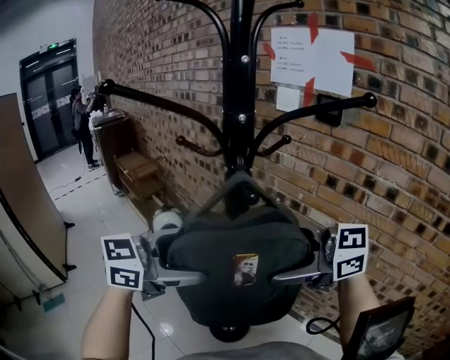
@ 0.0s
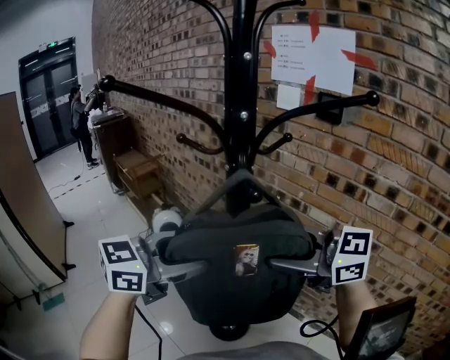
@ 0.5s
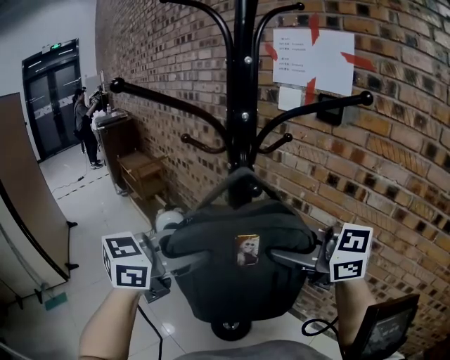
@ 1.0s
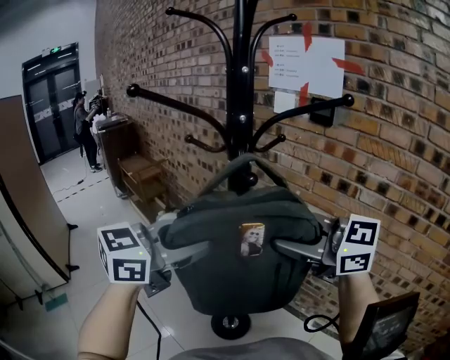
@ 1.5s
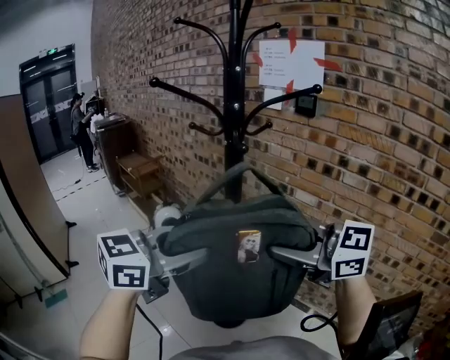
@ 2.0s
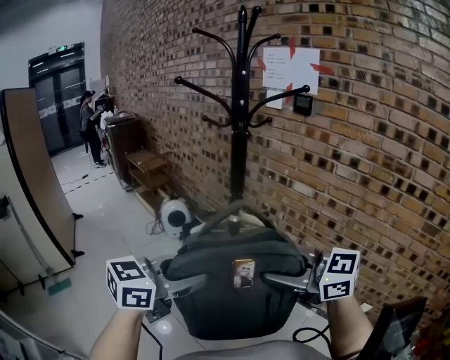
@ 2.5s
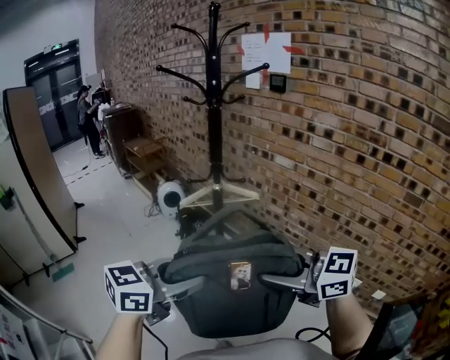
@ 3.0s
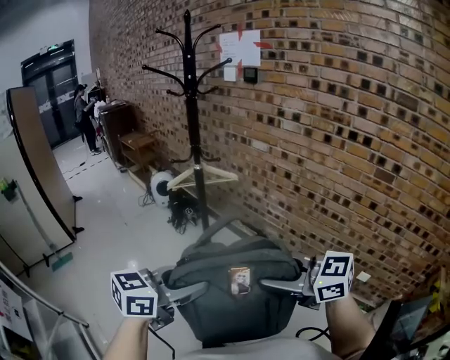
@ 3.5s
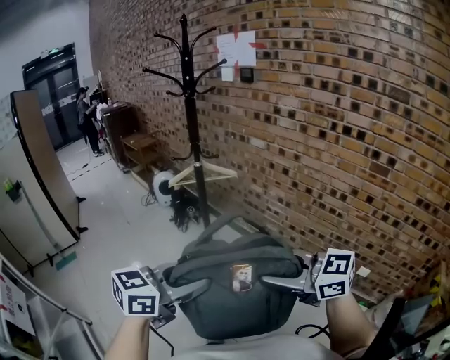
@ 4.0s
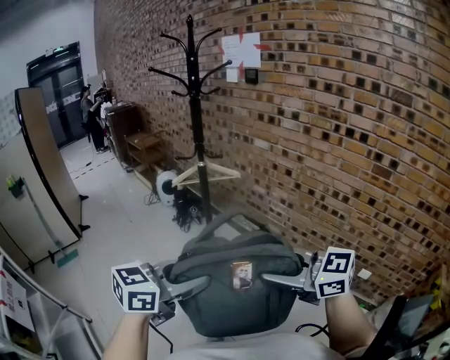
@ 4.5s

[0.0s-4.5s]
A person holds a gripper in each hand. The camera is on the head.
0.0s to 2.0s: The right gripper shifts by roughly 15 cm, and closes its fingers. The left gripper shifts by roughly 15 cm, and closes up.
2.0s to 4.5s: The two grippers travel together, about 50 cm.

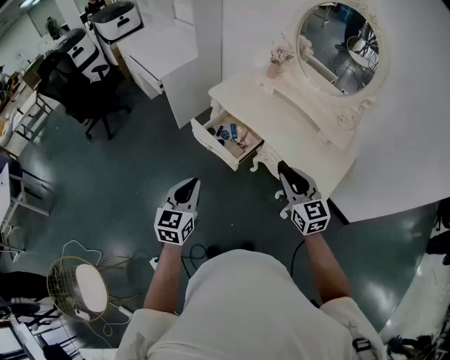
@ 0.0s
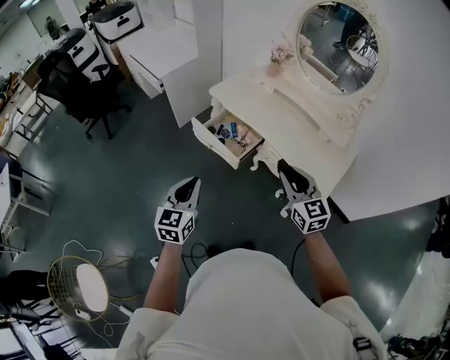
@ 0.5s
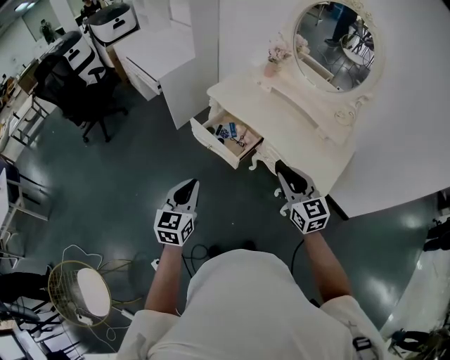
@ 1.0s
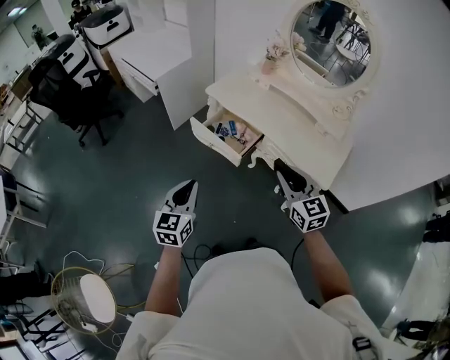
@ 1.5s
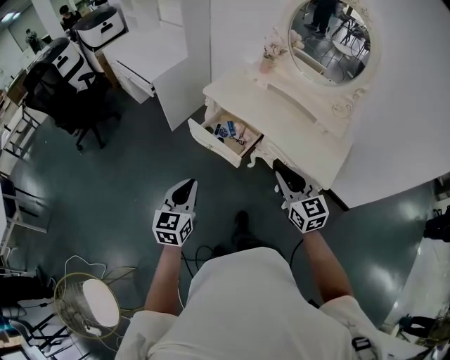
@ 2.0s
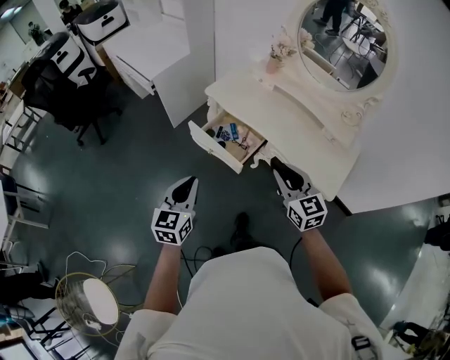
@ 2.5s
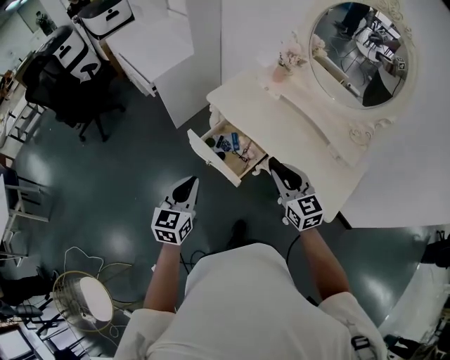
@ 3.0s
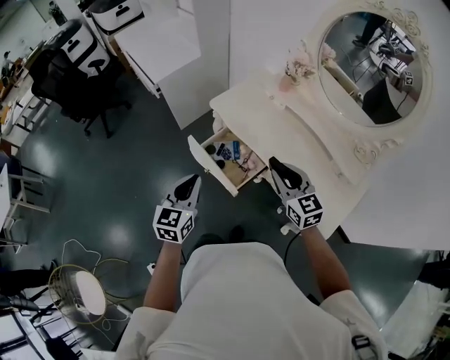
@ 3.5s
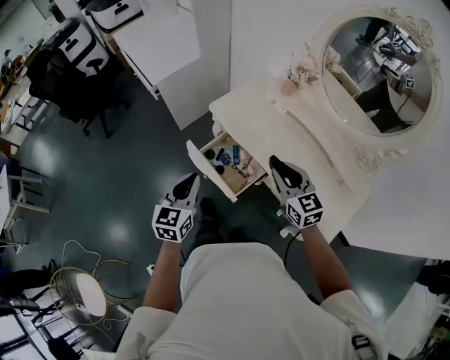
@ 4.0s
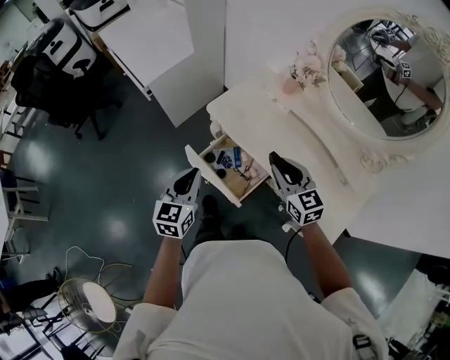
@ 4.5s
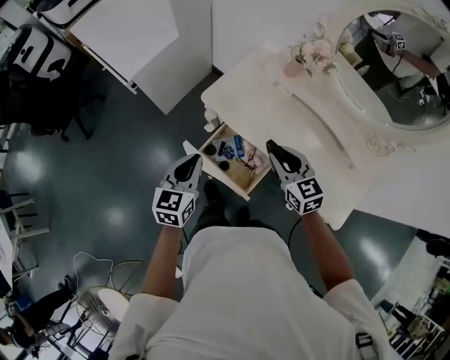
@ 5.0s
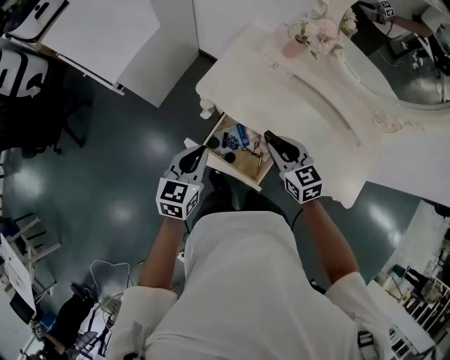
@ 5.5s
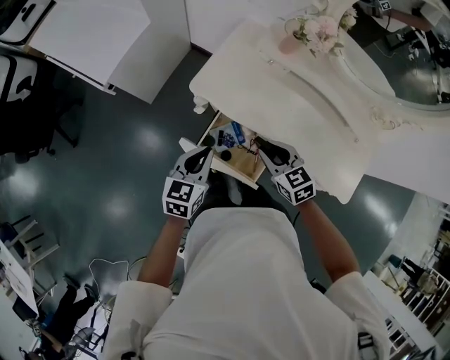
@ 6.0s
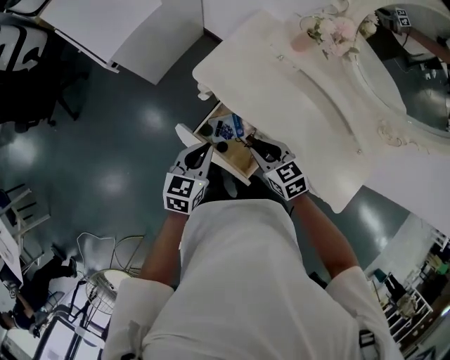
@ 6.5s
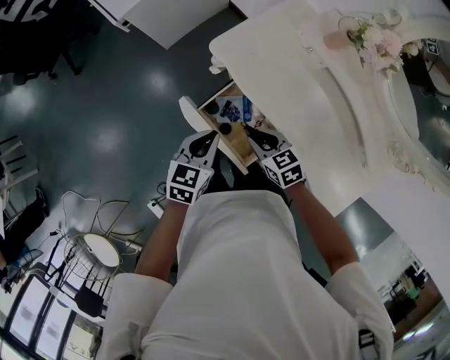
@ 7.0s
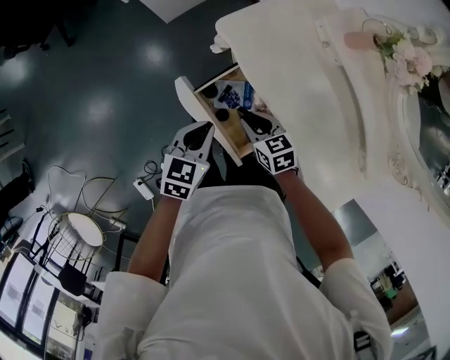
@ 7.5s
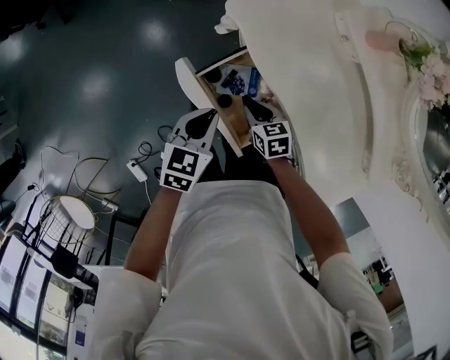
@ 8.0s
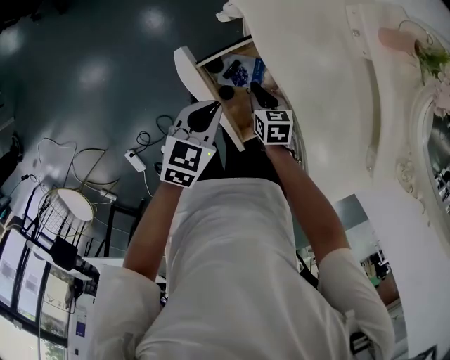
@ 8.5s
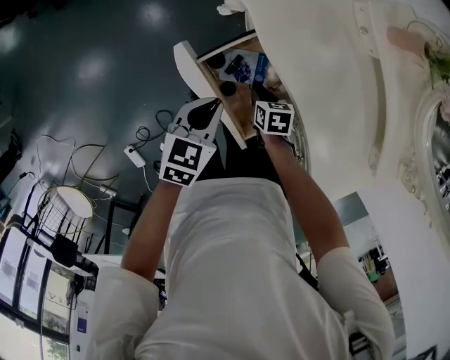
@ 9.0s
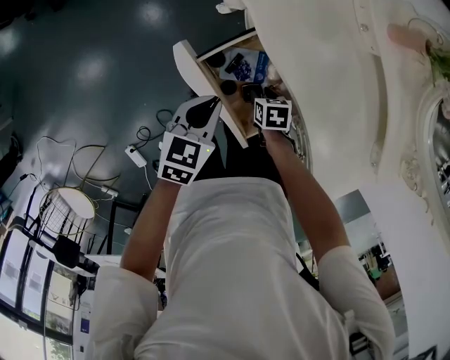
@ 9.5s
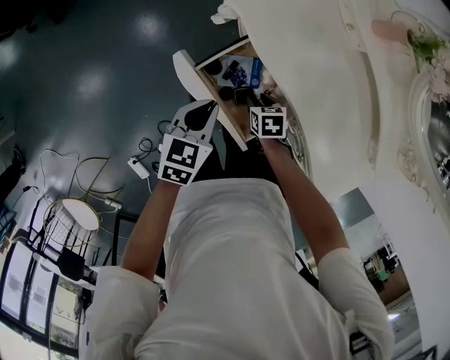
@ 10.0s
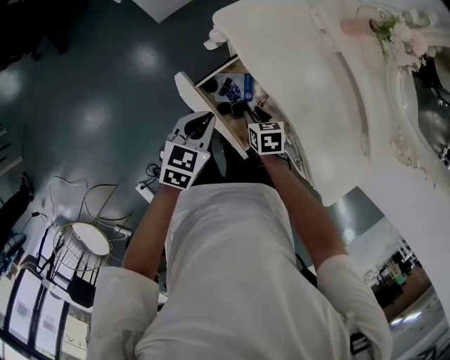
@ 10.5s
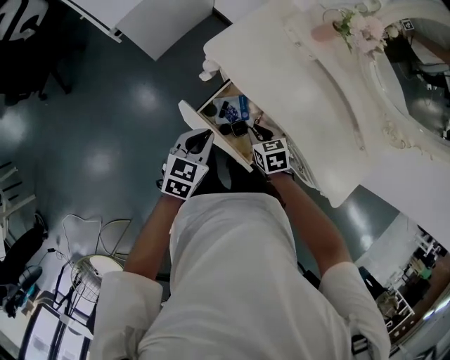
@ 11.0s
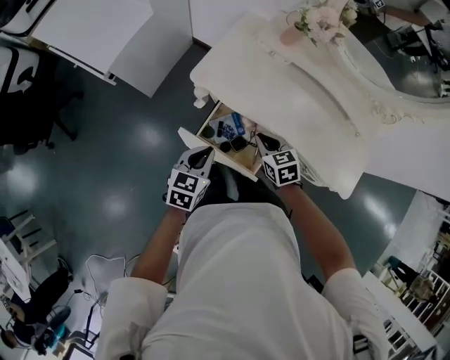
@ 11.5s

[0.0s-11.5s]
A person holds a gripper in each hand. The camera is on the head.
0.0s to 2.0s: Both grippers travel together to the left, approximately 5 cm.
2.0s to 4.0s: Both grippers travel together forward, approximately 25 cm.
4.0s to 6.0s: The right gripper is displaced downward, to the left and forward by roughly 20 cm, and turns by approximately 20 degrees. Meanwhile the left gripper is displaced forward and downward by roughly 20 cm, and turns by approximately 30 degrees.
6.0s to 7.5s: The left gripper heads downward, covering about 10 cm, and turns by some 20 degrees; the right gripper moves downward, some 15 cm, and rotates approximately 20 degrees.
7.5s to 9.5s: The right gripper shifts roughly 15 cm downward, and turns by some 30 degrees.
9.5s to 11.5s: The left gripper moves upward, approximately 10 cm, and swivels some 20 degrees. Meanwhile the right gripper is displaced upward by about 25 cm, changes its angle by about 30 degrees, and closes.

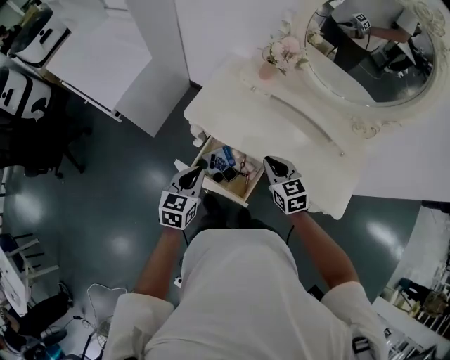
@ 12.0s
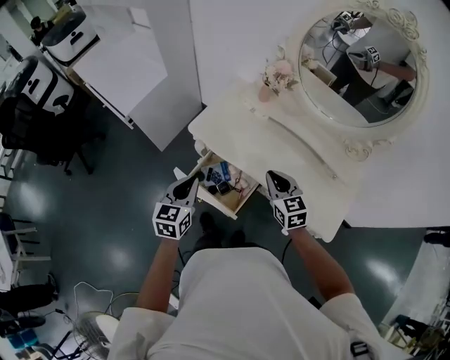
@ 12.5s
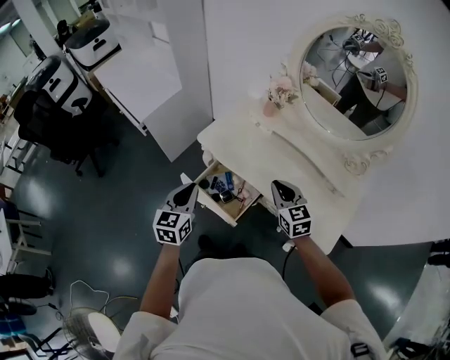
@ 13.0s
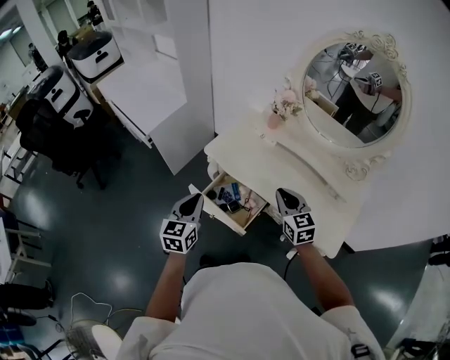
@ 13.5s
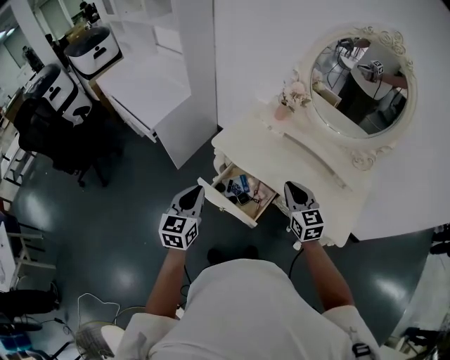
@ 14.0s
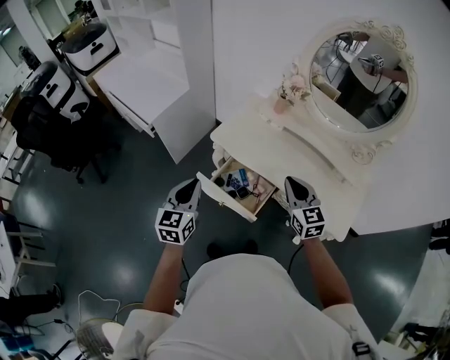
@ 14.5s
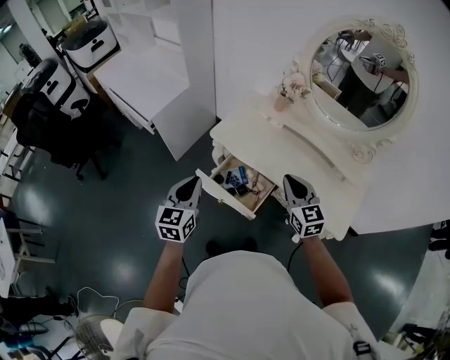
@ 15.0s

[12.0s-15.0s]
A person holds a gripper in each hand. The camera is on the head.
12.0s to 13.5s: Both grippers move upward and backward, about 10 cm. The left gripper changes its angle by roughly 20 degrees.
13.5s to 15.0s: The left gripper ends up approximately 5 cm from where it was.

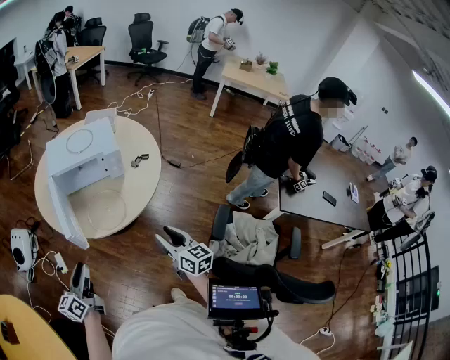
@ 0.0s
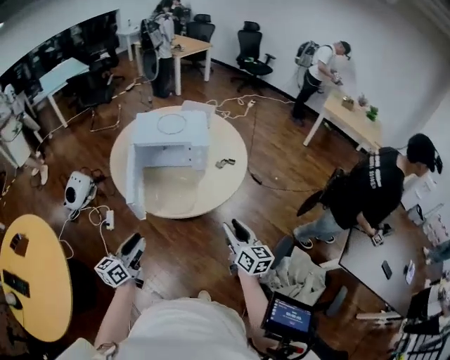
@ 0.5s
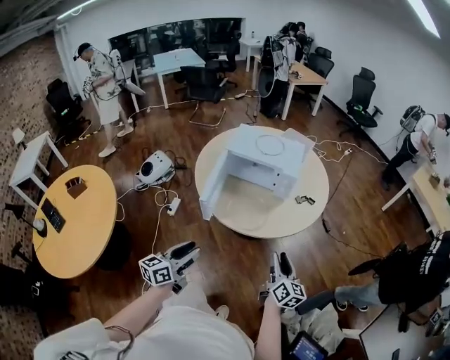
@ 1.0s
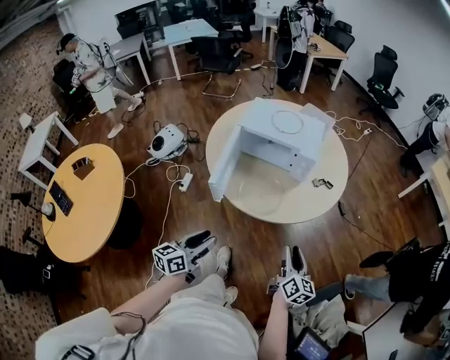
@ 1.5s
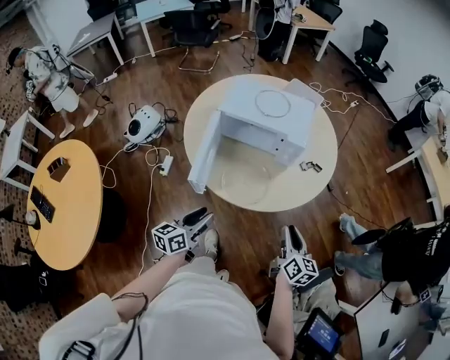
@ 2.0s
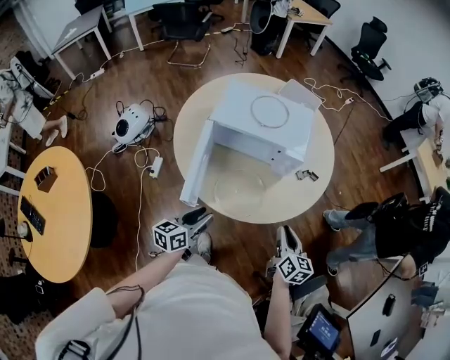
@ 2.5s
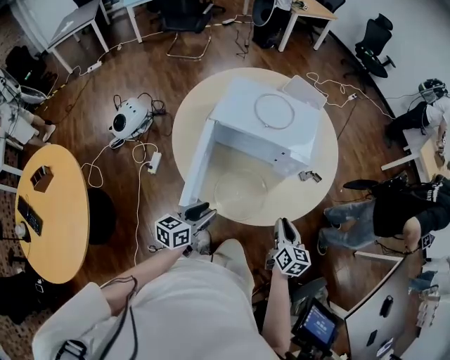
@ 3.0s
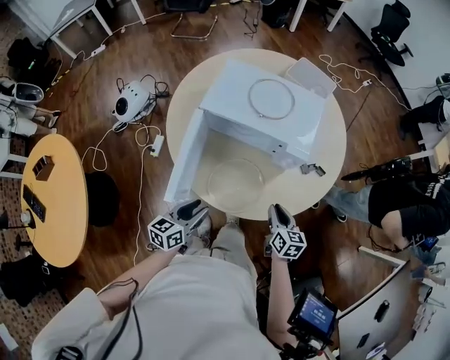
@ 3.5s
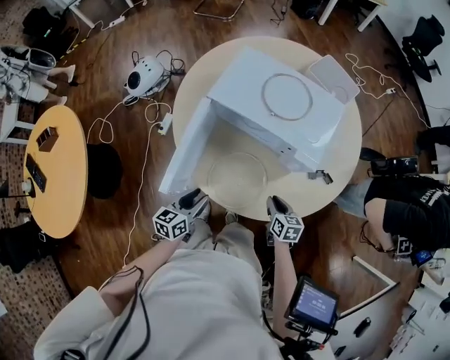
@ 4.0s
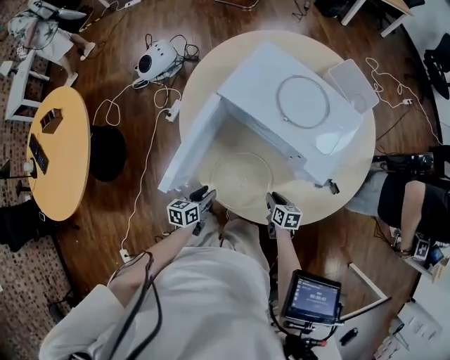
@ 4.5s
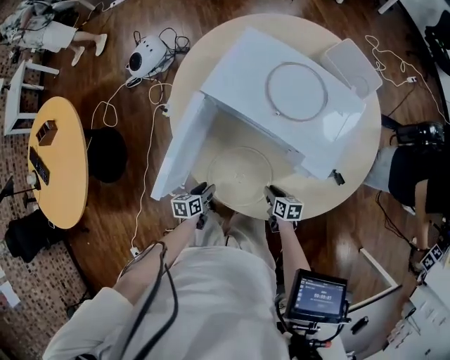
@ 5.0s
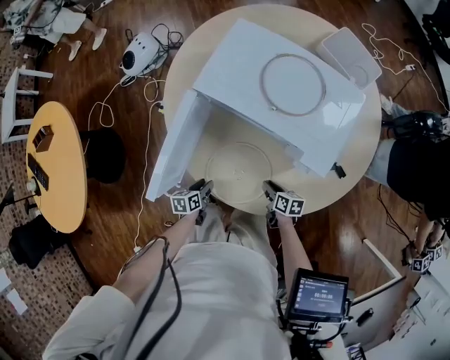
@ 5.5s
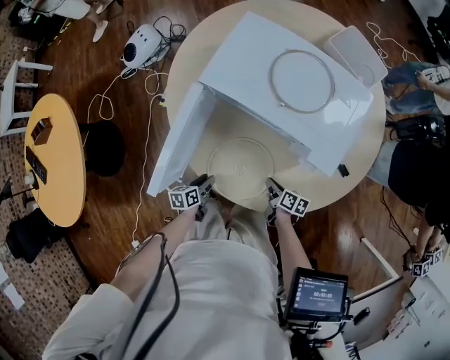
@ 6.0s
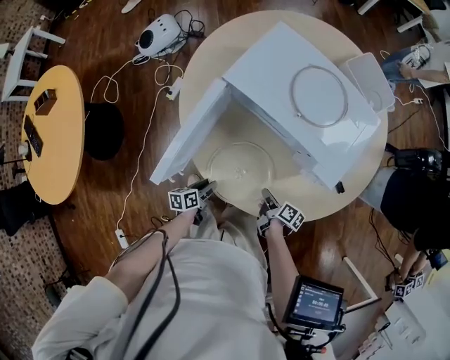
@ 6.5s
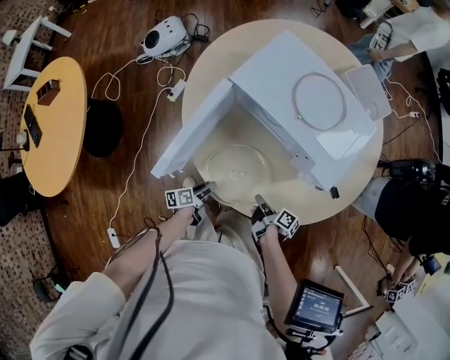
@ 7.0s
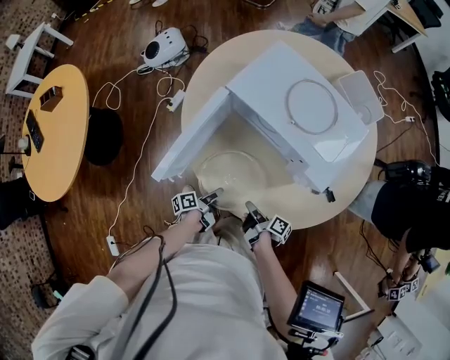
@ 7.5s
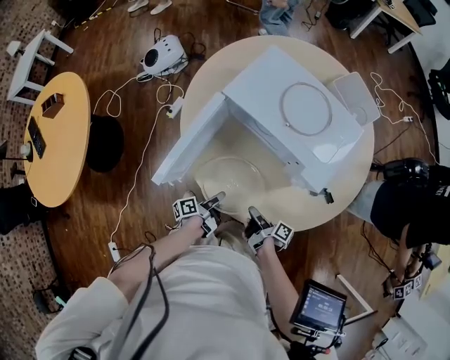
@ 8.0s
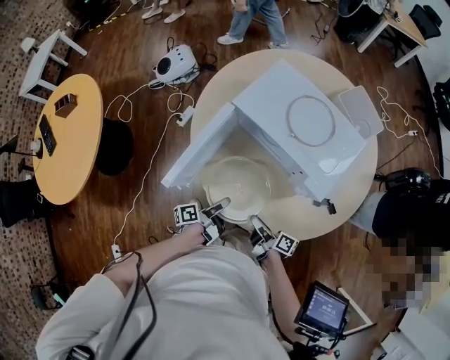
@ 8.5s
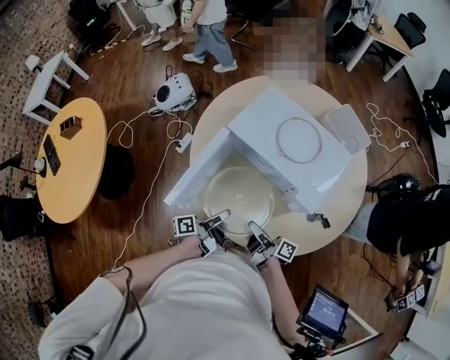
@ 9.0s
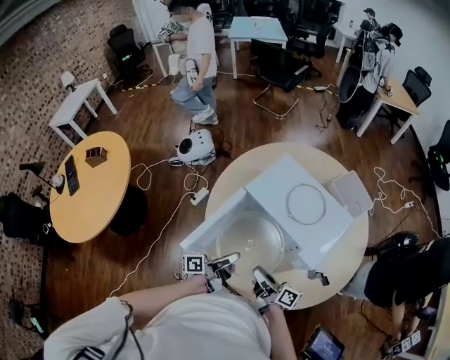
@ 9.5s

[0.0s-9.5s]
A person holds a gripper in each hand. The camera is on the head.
0.0s to 2.0s: The right gripper moves forward, approximately 15 cm. Meanwhile the left gripper travels forward, downward and to the right by about 15 cm.
2.0s to 4.0s: The grippers both shift forward and downward by roughly 25 cm. The right gripper changes its angle by approximately 40 degrees.
4.0s to 5.5s: The right gripper goes approximately 15 cm downward, and changes its angle by approximately 20 degrees. The left gripper moves downward, roughly 20 cm, and changes its angle by some 30 degrees.
5.5s to 7.5s: The right gripper heads upward and to the left, covering about 10 cm, and rotates about 40 degrees. The left gripper goes approximately 5 cm to the right, and twists approximately 40 degrees counterclockwise, seen from behind.
7.5s to 9.5s: The two grippers go roughly 25 cm upward. The left gripper swivels approximately 30 degrees. The right gripper changes its angle by roughly 40 degrees, and opens its fingers.
